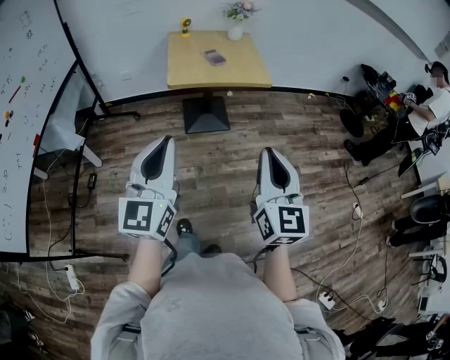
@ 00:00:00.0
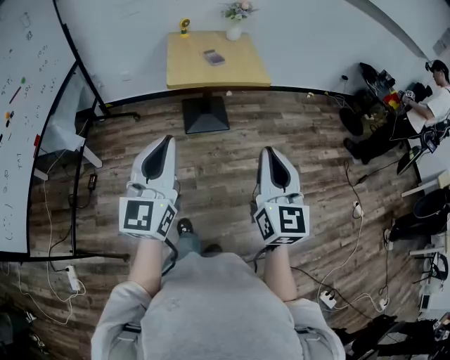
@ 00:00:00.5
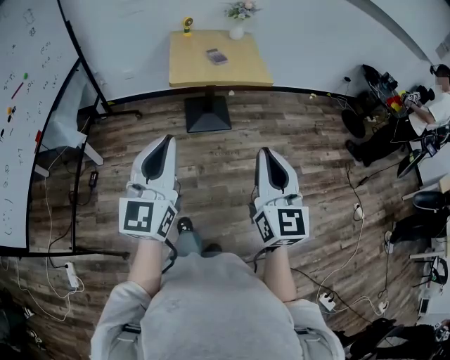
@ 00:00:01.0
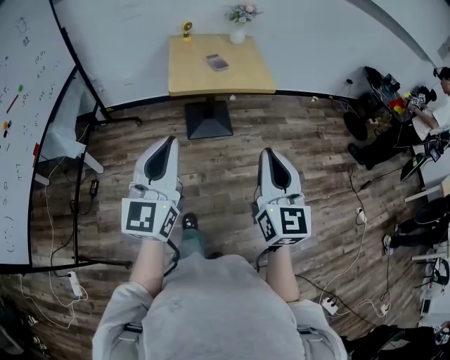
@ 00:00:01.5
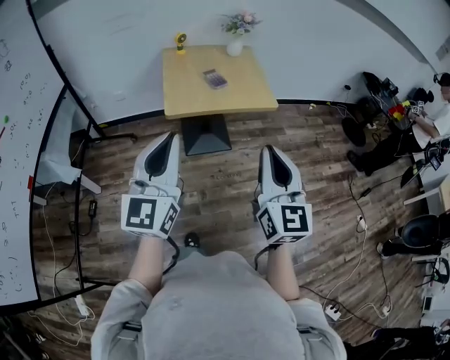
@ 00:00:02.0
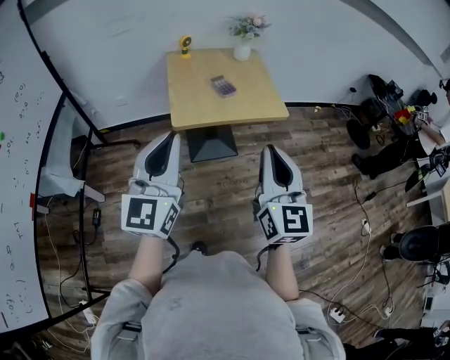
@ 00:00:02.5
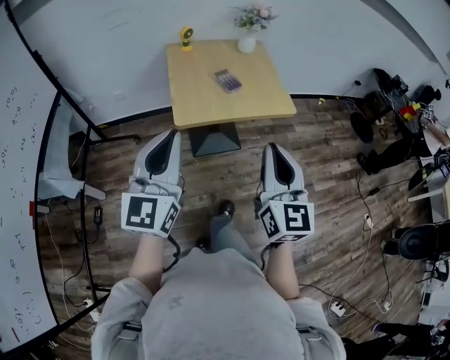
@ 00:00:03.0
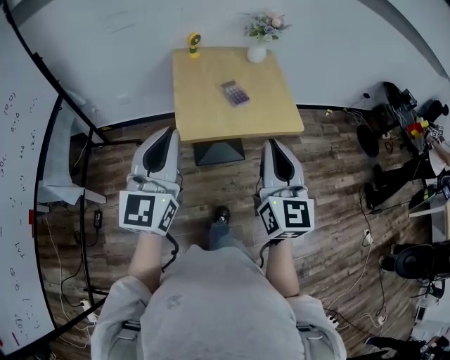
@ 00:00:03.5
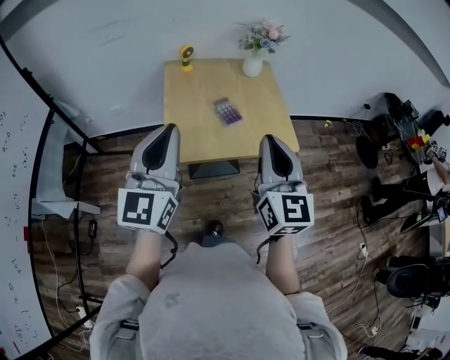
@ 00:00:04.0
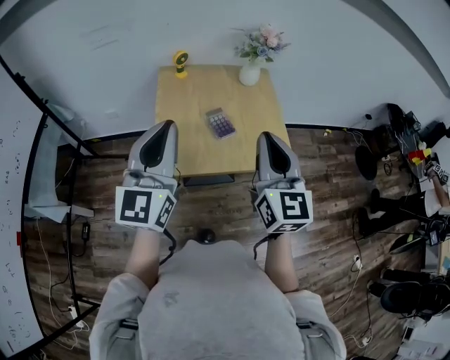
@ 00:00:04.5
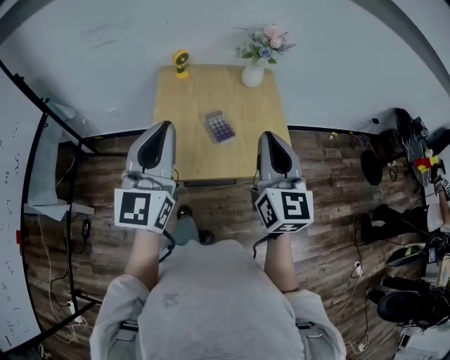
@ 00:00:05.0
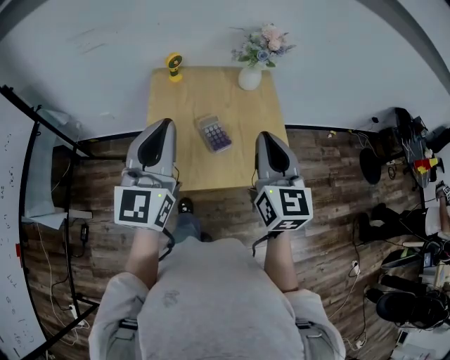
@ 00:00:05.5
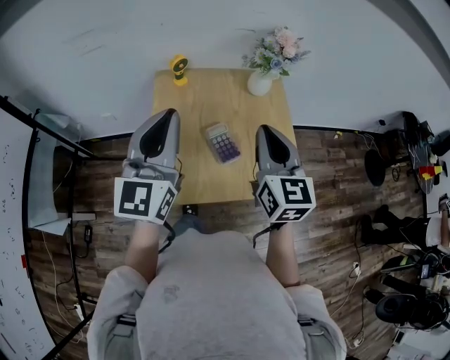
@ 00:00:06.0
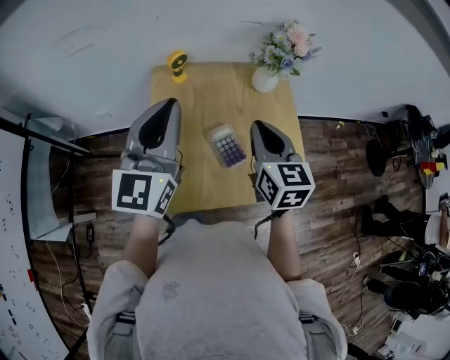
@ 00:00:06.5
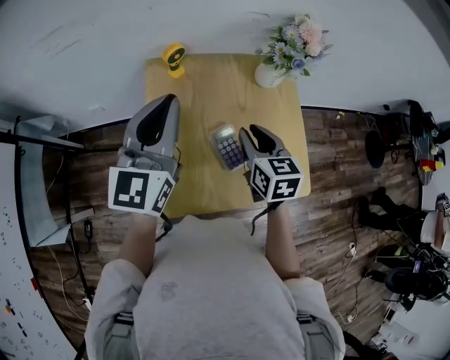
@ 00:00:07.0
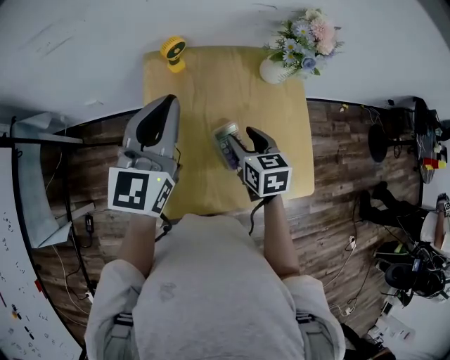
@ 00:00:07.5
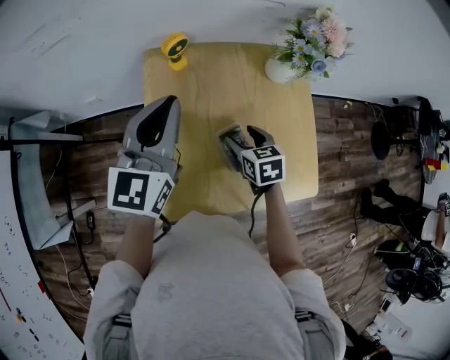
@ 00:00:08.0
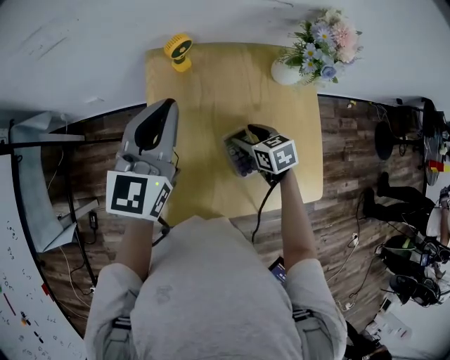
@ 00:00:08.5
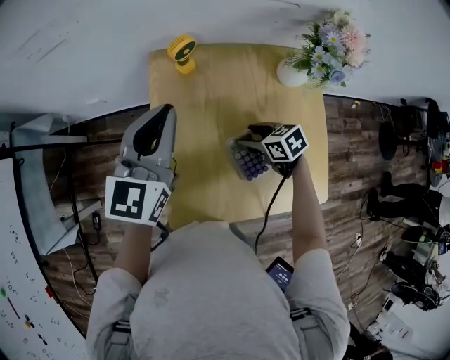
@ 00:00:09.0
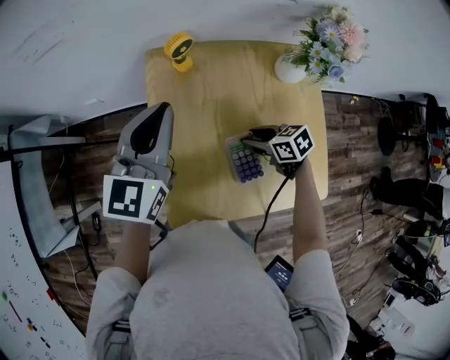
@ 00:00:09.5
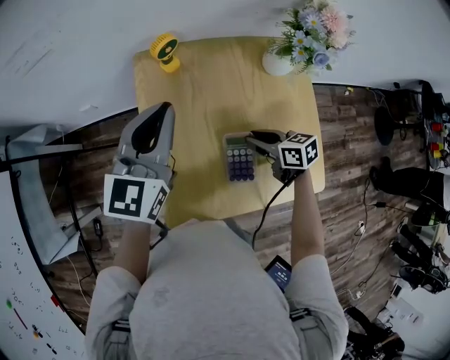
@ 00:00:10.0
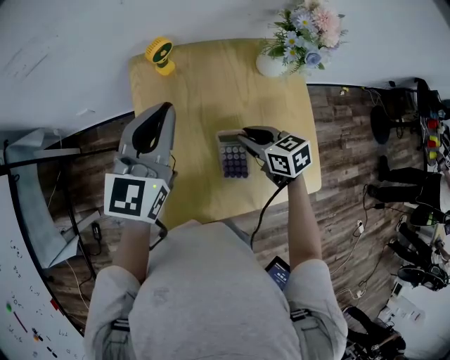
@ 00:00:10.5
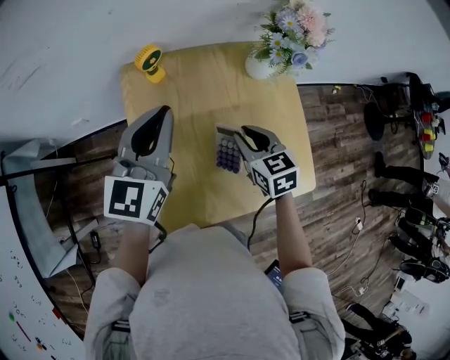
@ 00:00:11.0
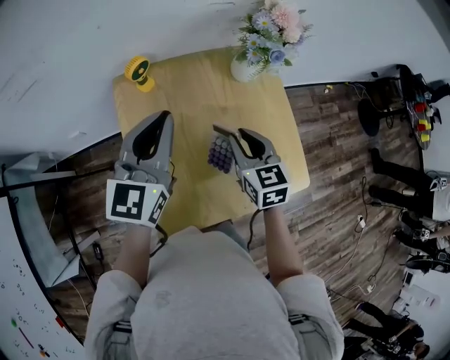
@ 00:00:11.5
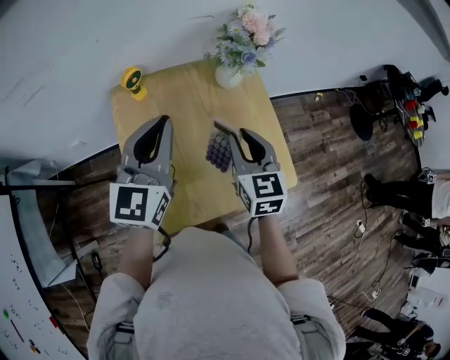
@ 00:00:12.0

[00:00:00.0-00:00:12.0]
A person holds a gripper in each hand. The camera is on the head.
00:00:00.0 to 00:00:02.0: The two grippers go approximately 15 cm forward.
00:00:02.0 to 00:00:04.0: The grippers both shift forward by about 30 cm.
00:00:04.0 to 00:00:06.0: The two grippers go about 25 cm forward.
00:00:06.0 to 00:00:08.0: The right gripper goes approximately 30 cm downward and forward, points its fingers roughly 40 degrees further downward, and opens. Meanwhile the left gripper travels forward and downward by some 20 cm.
00:00:08.0 to 00:00:10.0: The right gripper turns by approximately 30 degrees, and closes up.
00:00:10.0 to 00:00:12.0: The right gripper travels upward by about 20 cm, and swivels roughly 60 degrees; the left gripper changes place by roughly 10 cm.

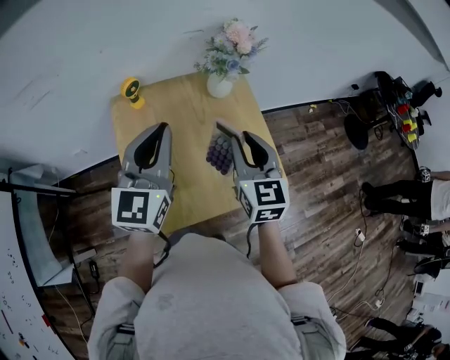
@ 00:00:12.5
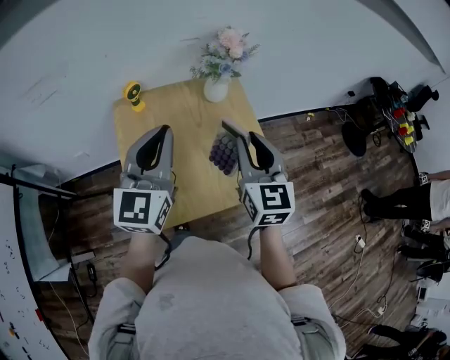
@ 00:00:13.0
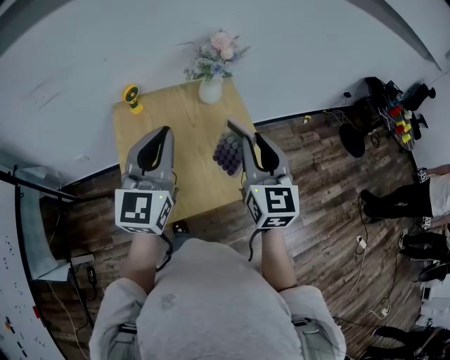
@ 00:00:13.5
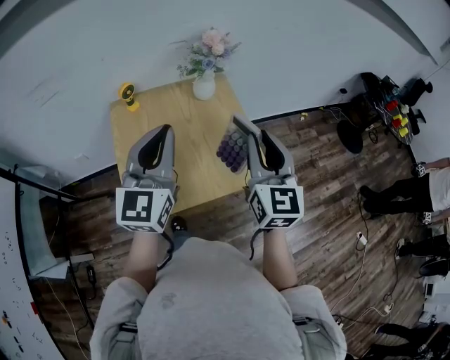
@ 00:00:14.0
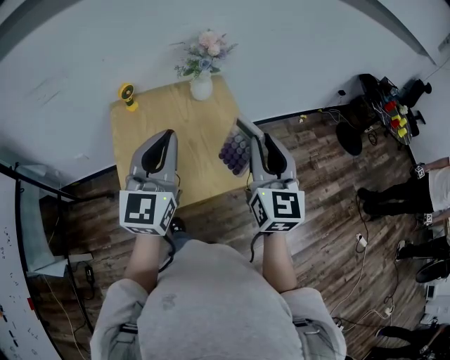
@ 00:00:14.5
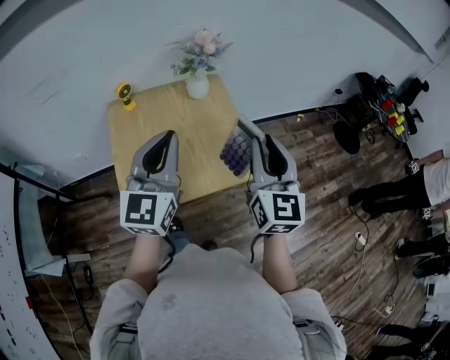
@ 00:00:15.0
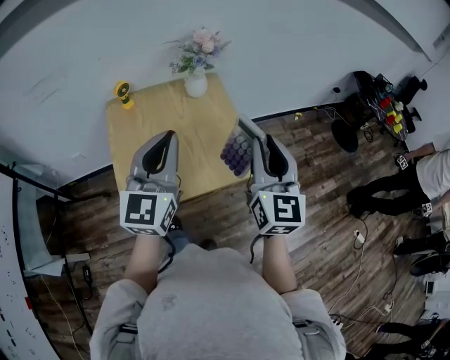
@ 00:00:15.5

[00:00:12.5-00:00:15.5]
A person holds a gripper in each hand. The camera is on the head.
00:00:12.5 to 00:00:14.0: The right gripper moves to the right, backward and upward, approximately 15 cm. Meanwhile the left gripper travels backward and to the right by approximately 10 cm.
00:00:14.0 to 00:00:15.5: The left gripper ends up approximately 5 cm from where it was. The right gripper travels backward by about 5 cm.

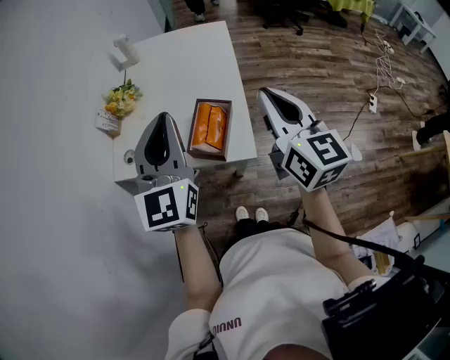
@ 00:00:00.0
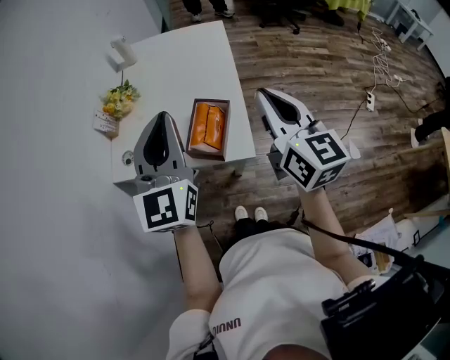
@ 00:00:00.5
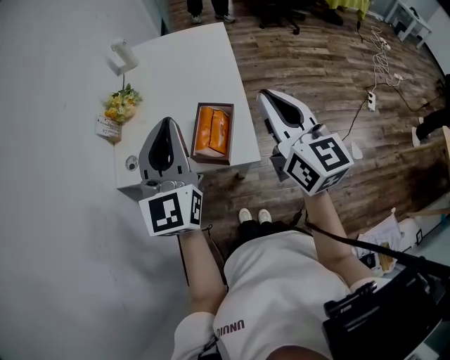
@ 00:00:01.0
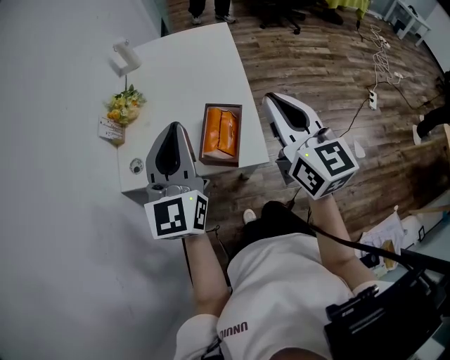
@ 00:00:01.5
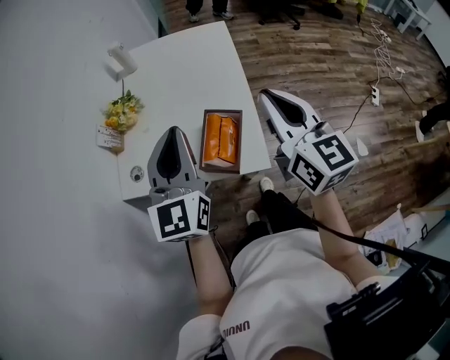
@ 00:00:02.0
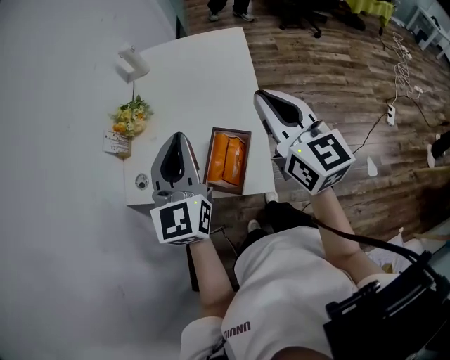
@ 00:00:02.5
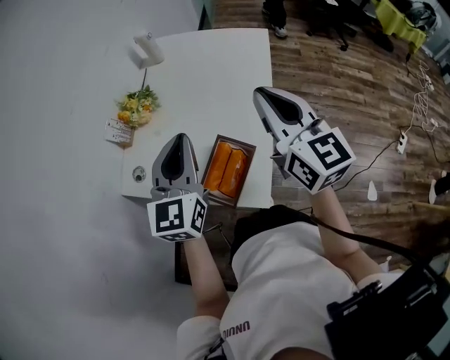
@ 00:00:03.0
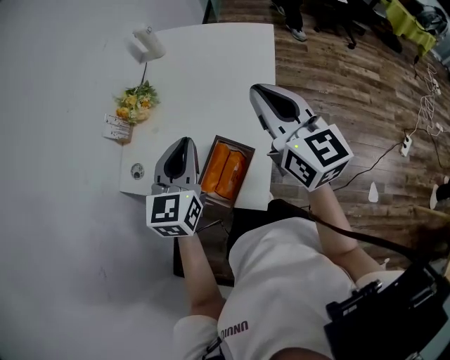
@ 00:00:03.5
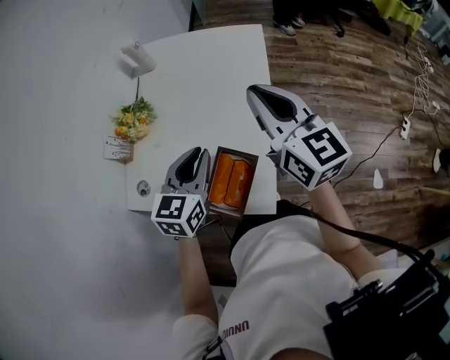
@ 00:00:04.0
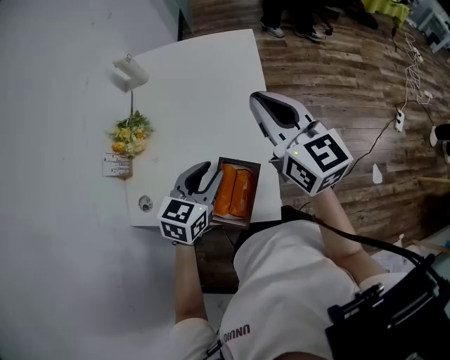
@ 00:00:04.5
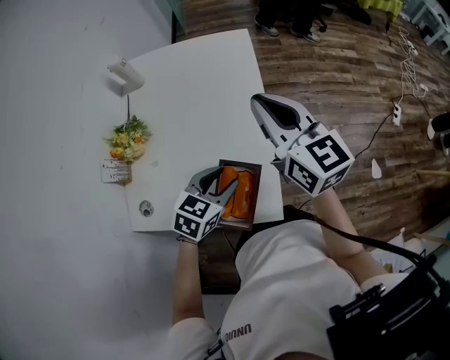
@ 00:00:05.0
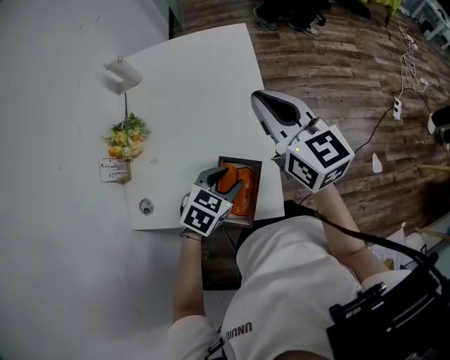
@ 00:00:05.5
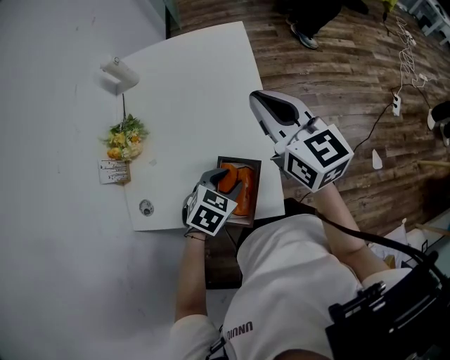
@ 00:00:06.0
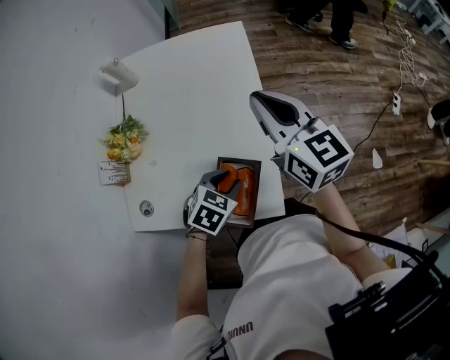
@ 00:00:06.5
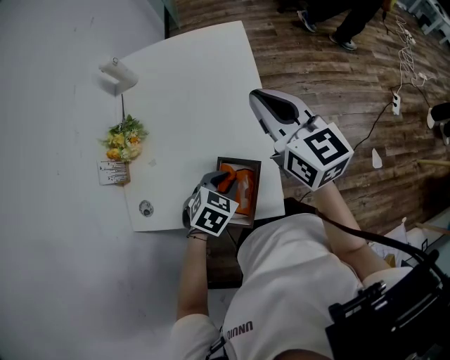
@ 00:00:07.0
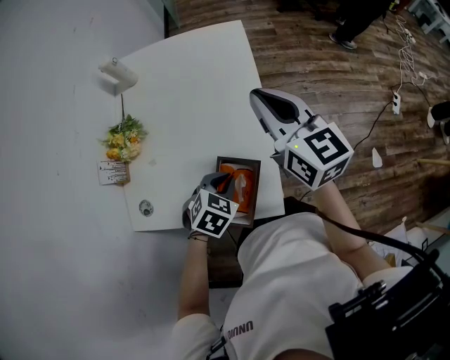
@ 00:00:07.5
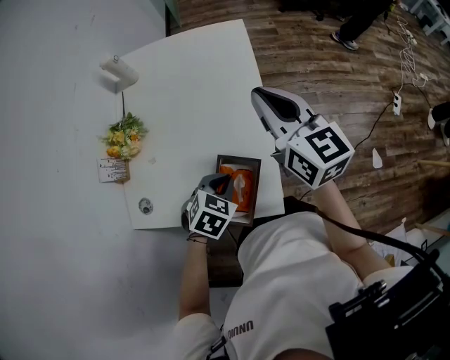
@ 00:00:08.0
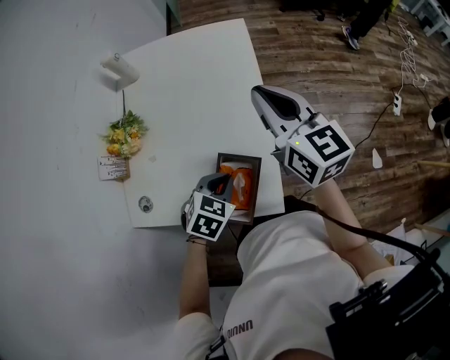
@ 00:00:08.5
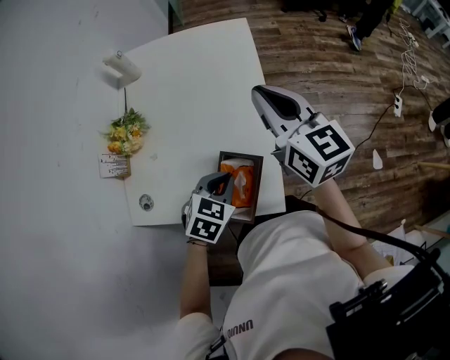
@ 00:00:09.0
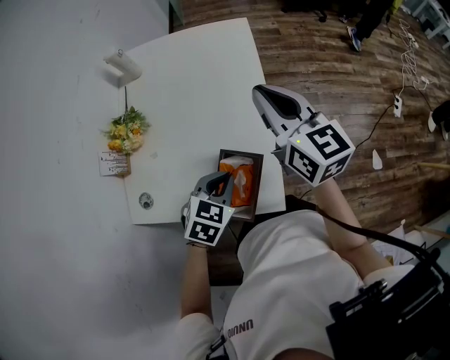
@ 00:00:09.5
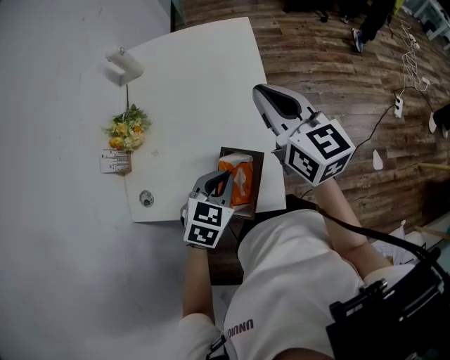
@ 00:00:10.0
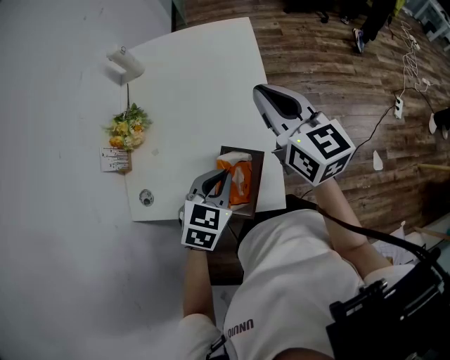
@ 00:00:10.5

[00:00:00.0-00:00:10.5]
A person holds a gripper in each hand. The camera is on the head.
00:00:00.0 to 00:00:02.0: The left gripper ends up some 5 cm from where it was. The right gripper changes place by roughly 5 cm.
00:00:02.0 to 00:00:04.0: The left gripper goes roughly 15 cm downward and forward, and turns by about 30 degrees; the right gripper heads forward, covering about 15 cm.
00:00:04.0 to 00:00:06.5: The left gripper shifts some 15 cm downward, tilts its fingers some 30 degrees downward, and opens.
00:00:06.5 to 00:00:08.5: The left gripper closes its fingers.
00:00:08.5 to 00:00:10.5: The left gripper is displaced upward by about 5 cm.

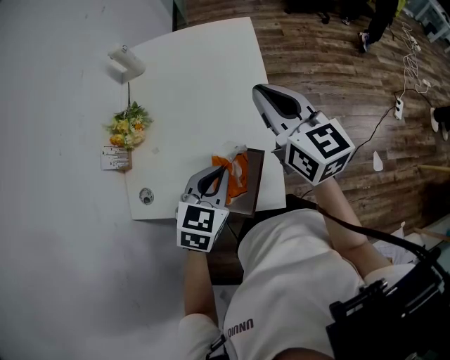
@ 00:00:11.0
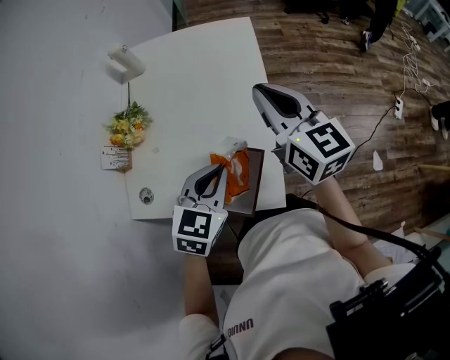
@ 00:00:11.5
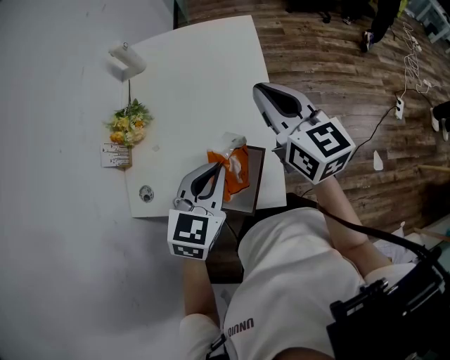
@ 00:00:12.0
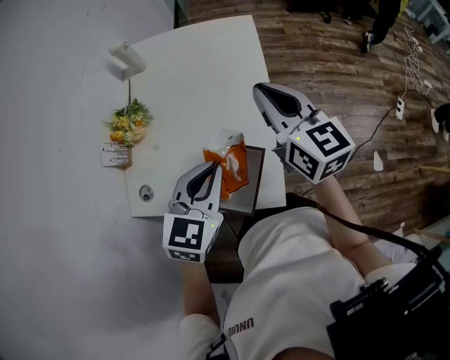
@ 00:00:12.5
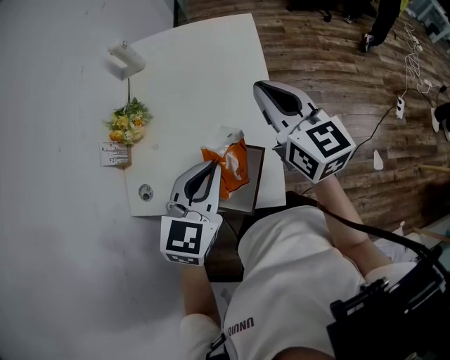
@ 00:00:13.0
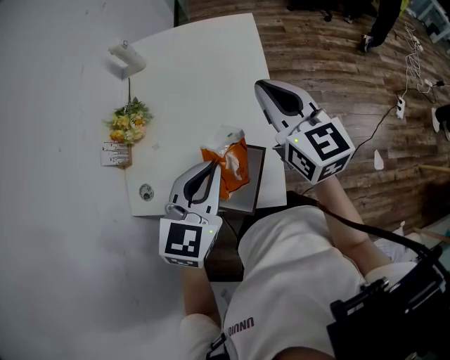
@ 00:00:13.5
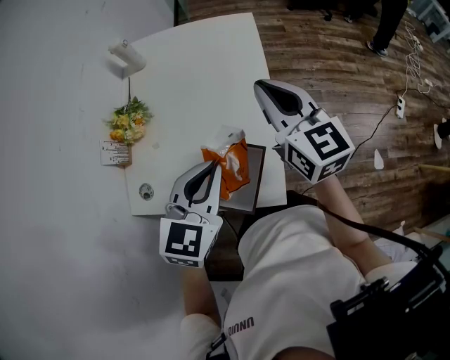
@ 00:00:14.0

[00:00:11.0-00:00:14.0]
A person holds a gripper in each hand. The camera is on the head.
00:00:11.0 to 00:00:12.5: The left gripper goes about 5 cm upward.
00:00:12.5 to 00:00:14.0: There are only small adjustments of the grippers.
